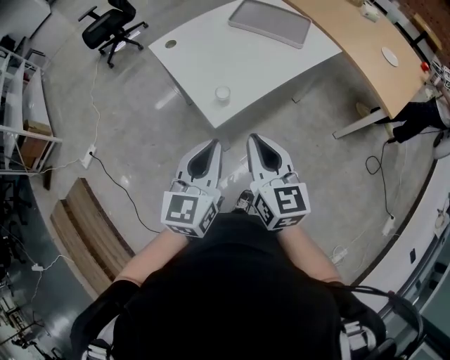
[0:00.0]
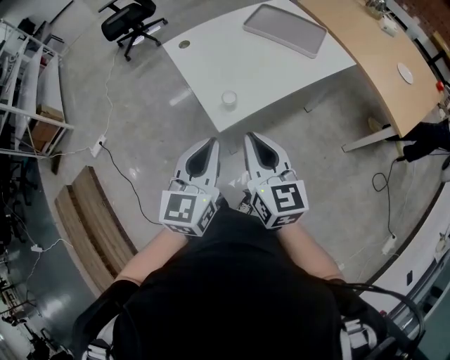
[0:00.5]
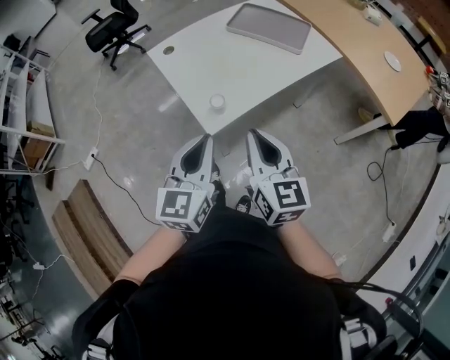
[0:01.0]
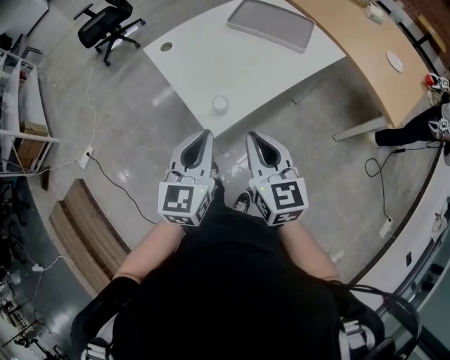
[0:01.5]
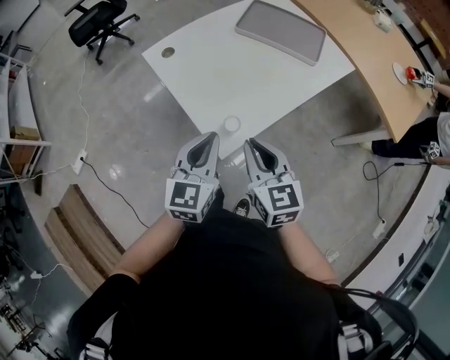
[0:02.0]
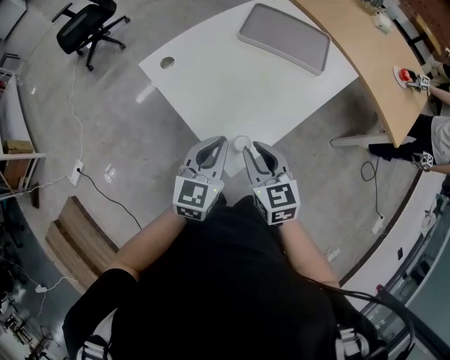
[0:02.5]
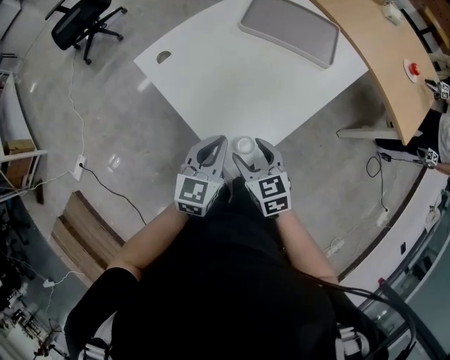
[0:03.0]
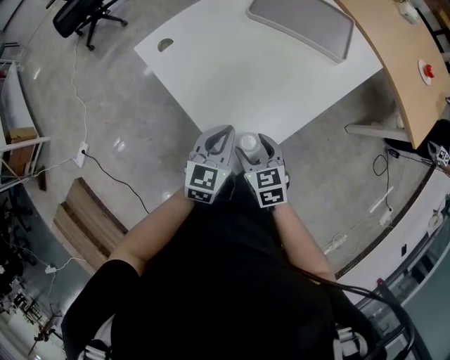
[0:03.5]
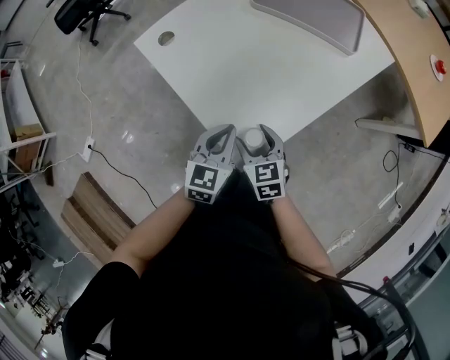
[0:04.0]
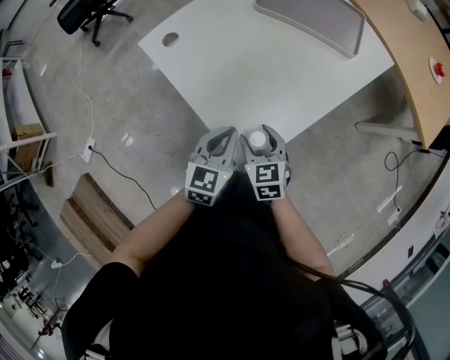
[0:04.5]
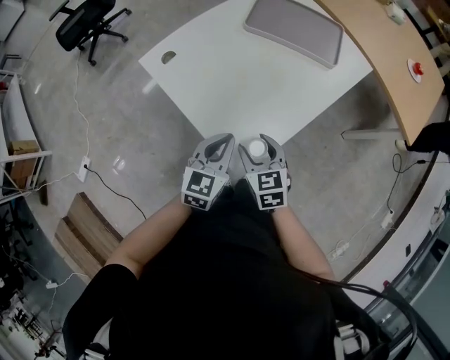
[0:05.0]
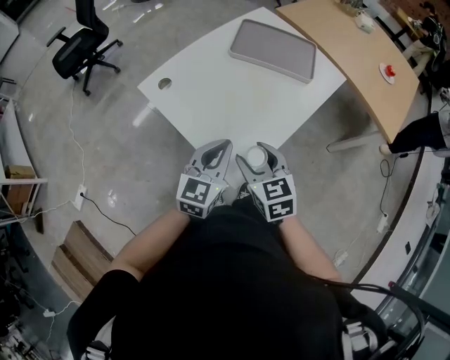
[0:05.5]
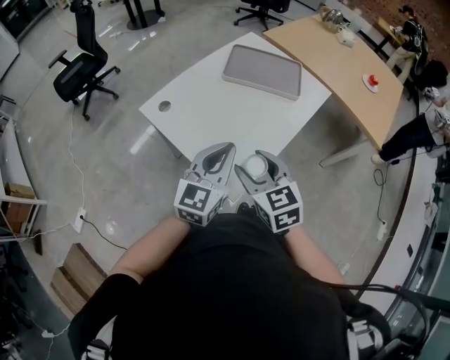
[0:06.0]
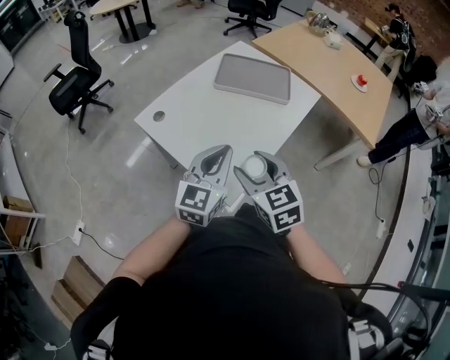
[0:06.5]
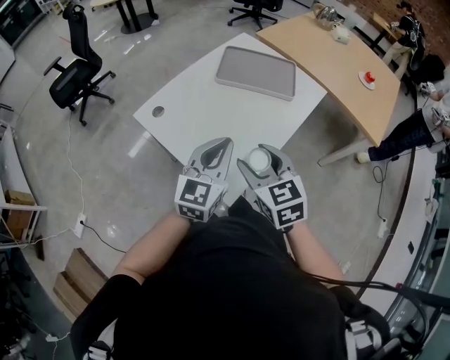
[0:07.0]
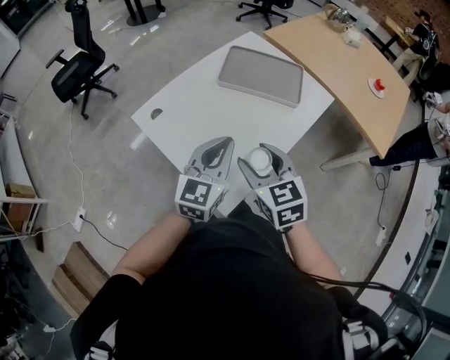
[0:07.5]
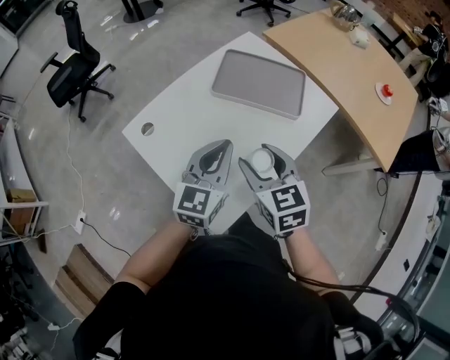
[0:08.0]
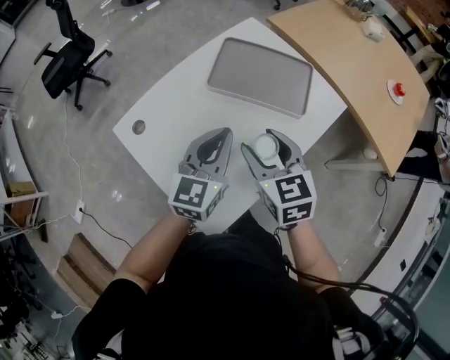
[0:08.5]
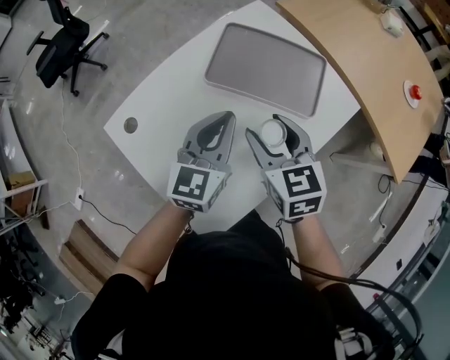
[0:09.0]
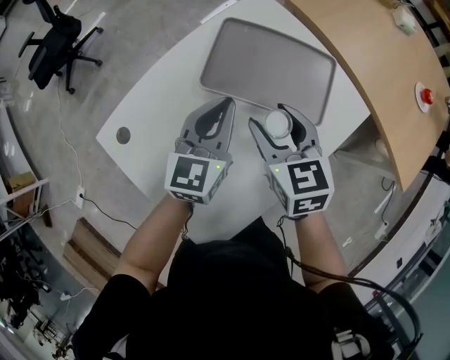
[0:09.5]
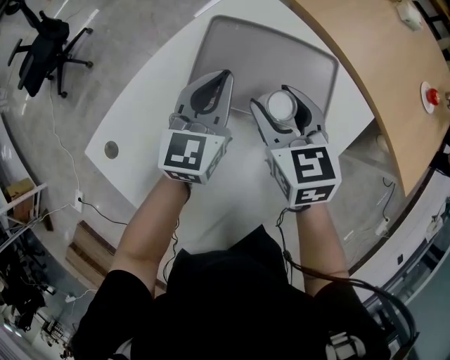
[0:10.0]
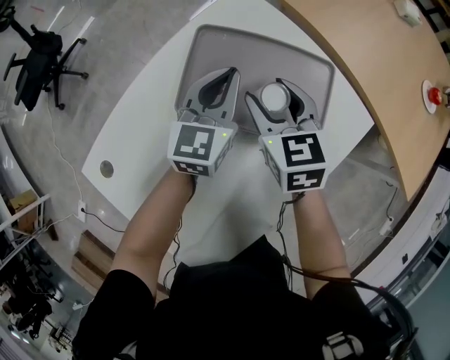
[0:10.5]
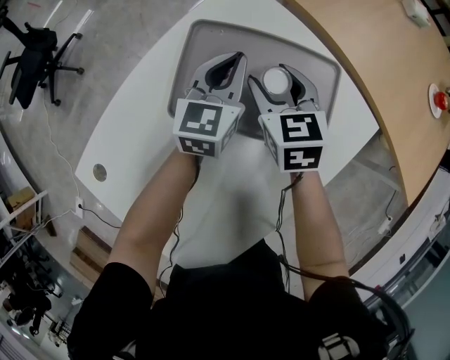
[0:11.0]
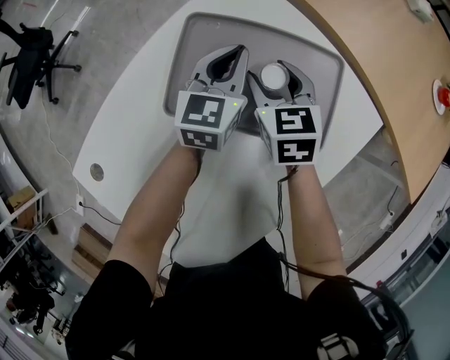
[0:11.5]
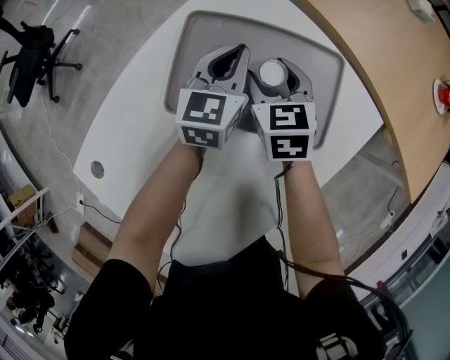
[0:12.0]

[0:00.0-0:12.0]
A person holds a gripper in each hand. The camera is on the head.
0:00.0 to 0:02.0: The right gripper goes about 20 cm forward and downward, while the left gripper travels forward by approximately 20 cm.
0:02.0 to 0:04.0: The two grippers go approximately 25 cm downward and forward. The right gripper opens up.
0:04.0 to 0:06.0: Both grippers travel together upward, approximately 25 cm. The left gripper changes its angle by some 30 degrees.
0:06.0 to 0:08.0: The left gripper heads forward, covering some 20 cm, while the right gripper moves forward and to the right, approximately 20 cm.
0:08.0 to 0:10.0: Both grippers move forward, some 35 cm.
0:10.0 to 0:12.0: The left gripper shifts about 15 cm forward, downward and to the right. Meanwhile the right gripper heads downward and forward, covering about 15 cm.

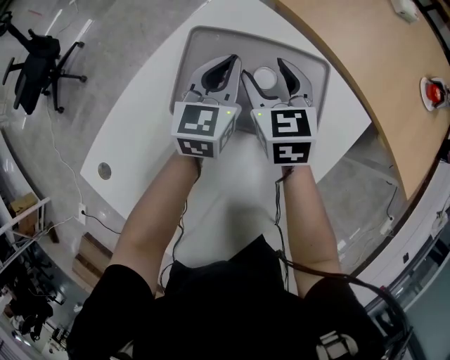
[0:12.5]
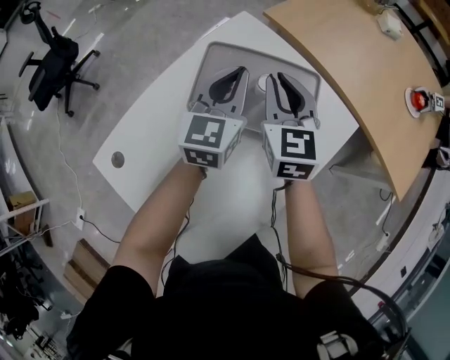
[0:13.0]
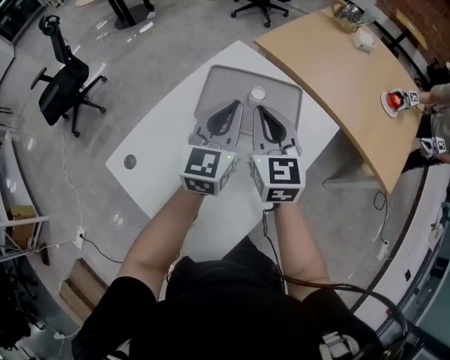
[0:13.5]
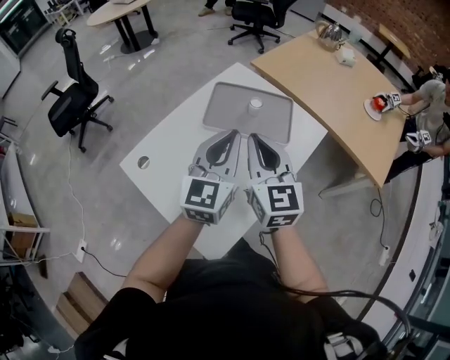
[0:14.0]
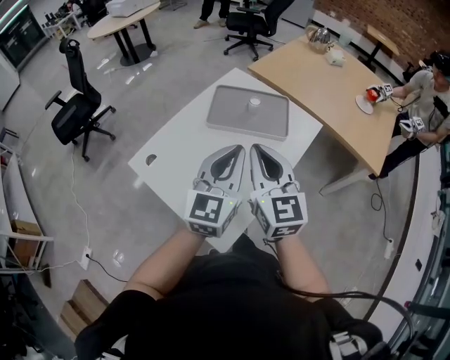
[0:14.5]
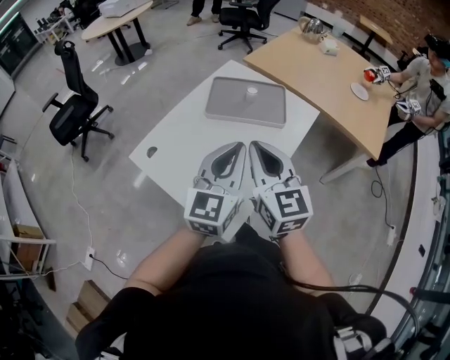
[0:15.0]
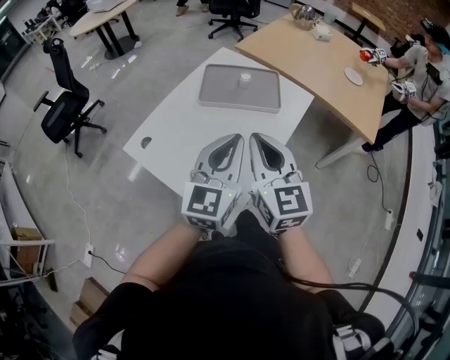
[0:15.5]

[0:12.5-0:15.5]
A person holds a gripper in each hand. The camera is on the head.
0:12.5 to 0:14.0: The grippers both shift backward and upward by some 40 cm. The right gripper swivels roughly 20 degrees, and closes up.
0:14.0 to 0:15.5: Both grippers travel together backward, about 15 cm.

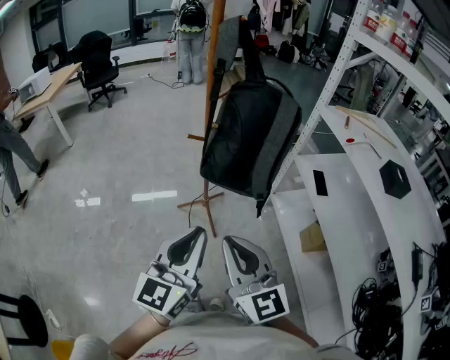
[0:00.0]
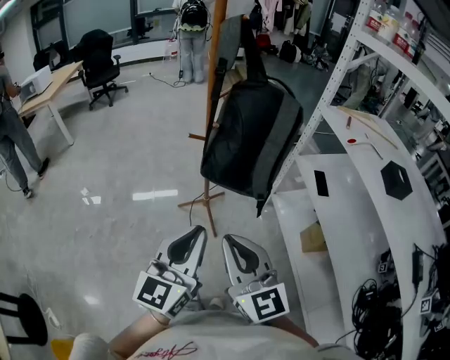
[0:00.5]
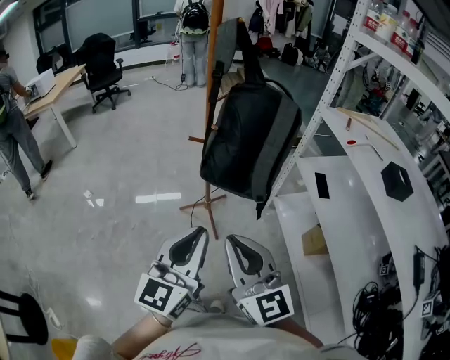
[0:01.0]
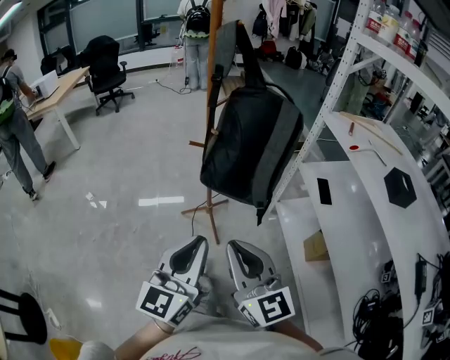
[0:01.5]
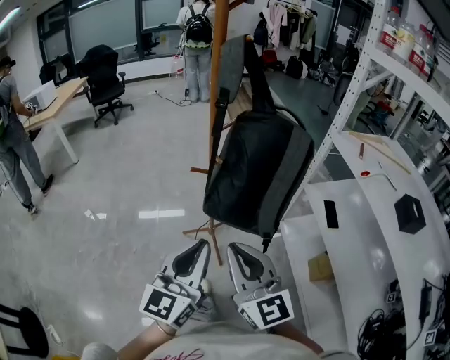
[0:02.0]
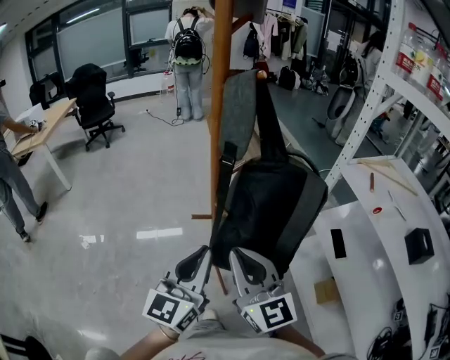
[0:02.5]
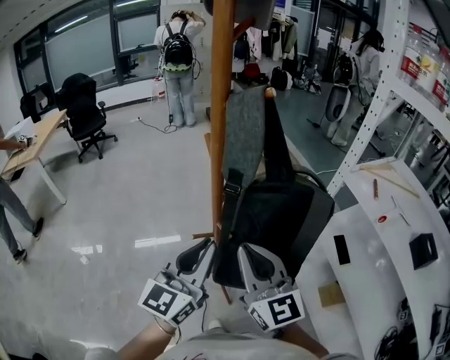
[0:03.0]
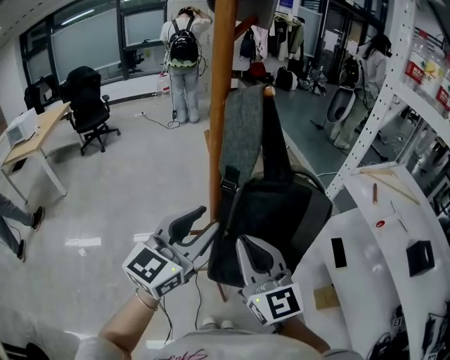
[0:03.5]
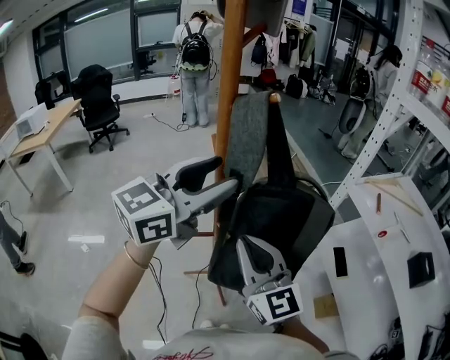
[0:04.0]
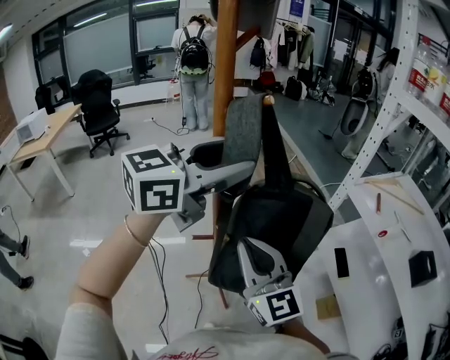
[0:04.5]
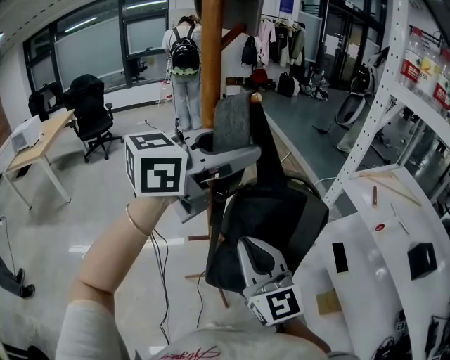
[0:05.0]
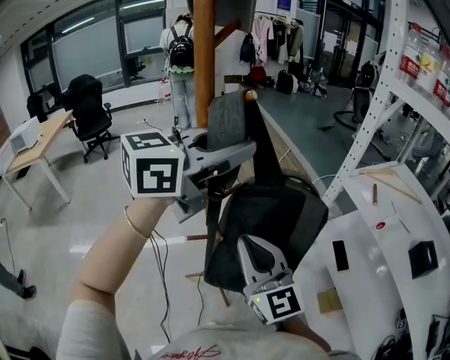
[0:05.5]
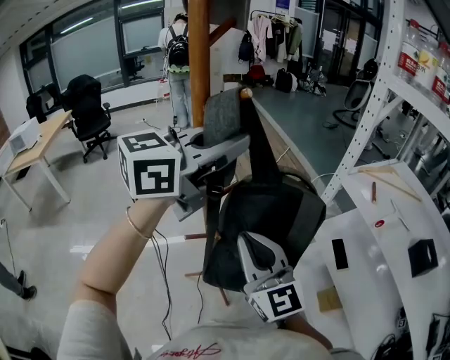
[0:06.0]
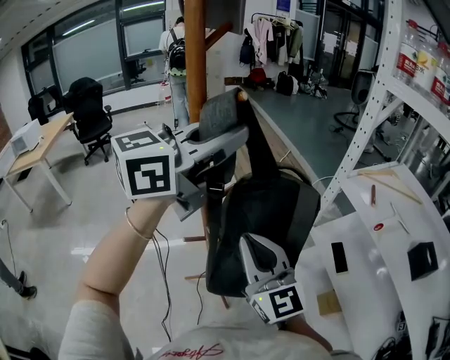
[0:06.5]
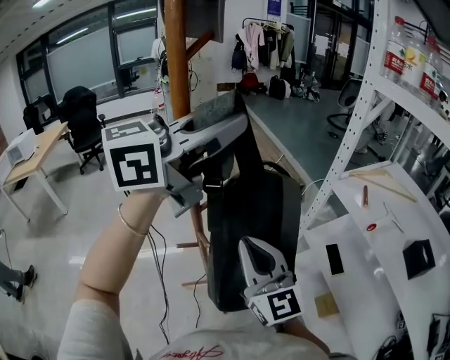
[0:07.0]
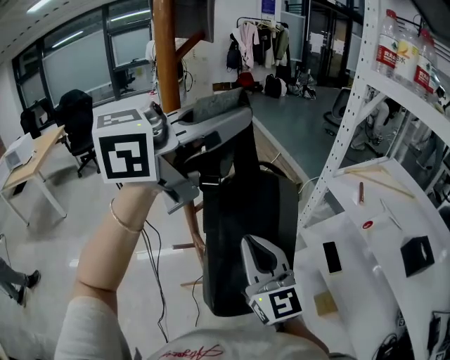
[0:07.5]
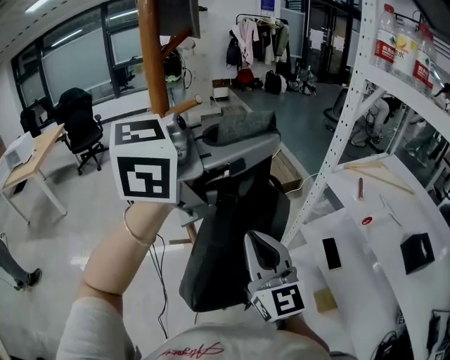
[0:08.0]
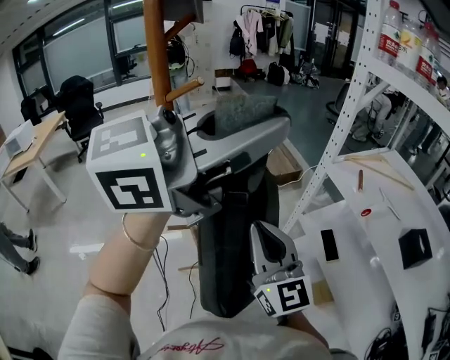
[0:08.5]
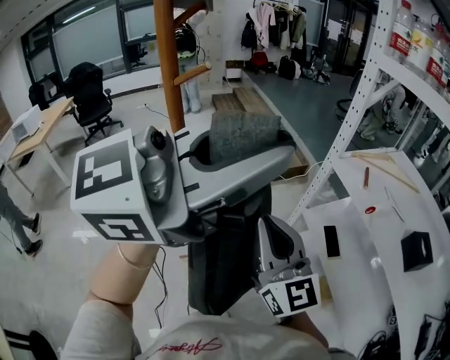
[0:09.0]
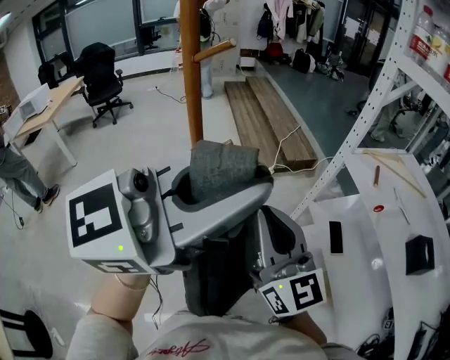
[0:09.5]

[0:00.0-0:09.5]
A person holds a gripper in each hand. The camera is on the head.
0:00.0 to 0:02.0: Both grippers move forward, roughly 10 cm.
0:02.0 to 0:04.0: The left gripper goes some 35 cm forward and upward, changes its angle by some 30 degrees, and opens up. The right gripper travels forward by approximately 20 cm.
0:04.0 to 0:05.5: The left gripper heads upward and to the right, covering about 10 cm, and closes up.
0:05.5 to 0:07.5: The right gripper travels to the right by some 5 cm, while the left gripper goes about 10 cm upward and to the right, and closes.
0:07.5 to 0:09.5: The right gripper moves approximately 5 cm. Meanwhile the left gripper heads backward, downward and to the right, covering roughly 15 cm.

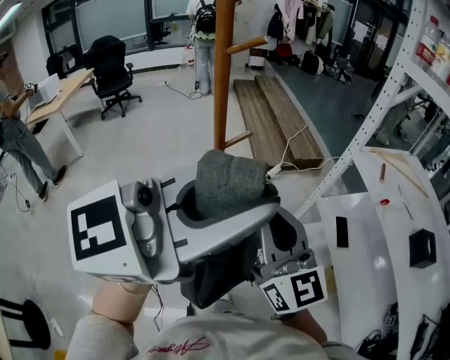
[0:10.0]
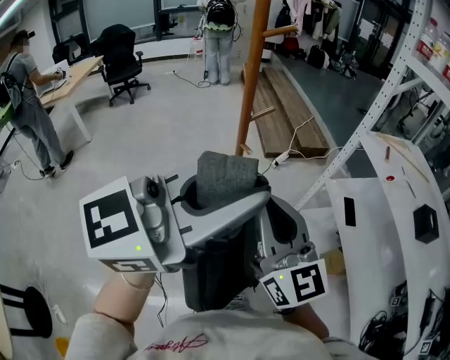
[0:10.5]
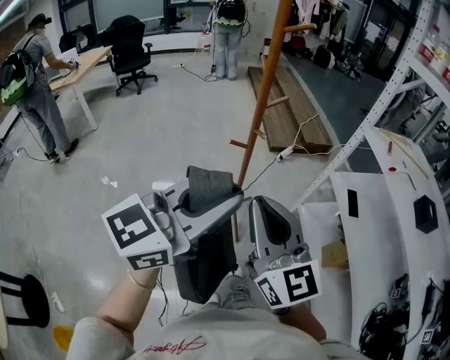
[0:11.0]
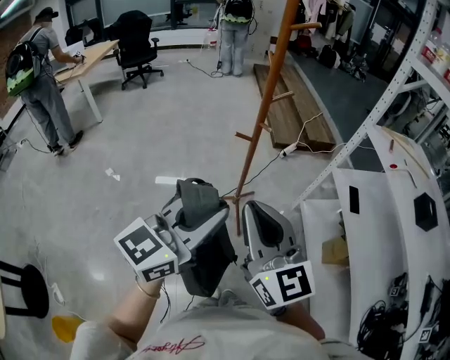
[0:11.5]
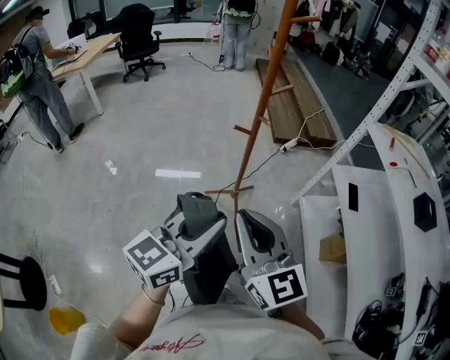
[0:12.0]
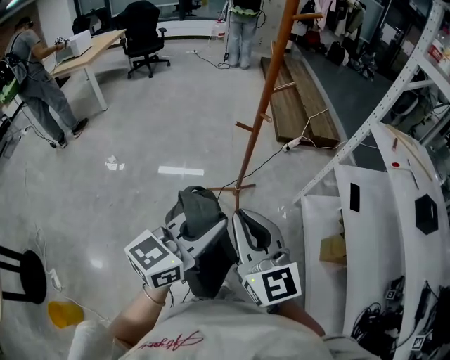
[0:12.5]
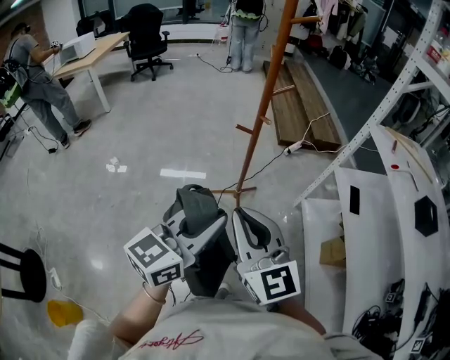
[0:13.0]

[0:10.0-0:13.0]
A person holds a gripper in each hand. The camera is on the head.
0:10.0 to 0:11.5: The left gripper is displaced downward, backward and to the left by approximately 25 cm, and swivels approximately 30 degrees; the right gripper goes some 20 cm backward.
0:11.5 to 0:13.0: The left gripper ends up roughly 5 cm from where it was.
